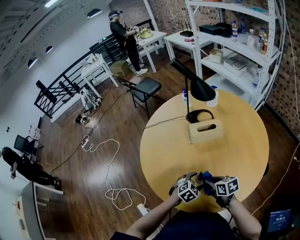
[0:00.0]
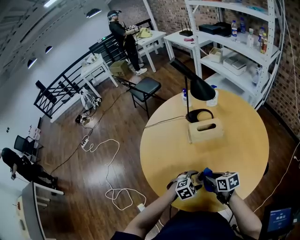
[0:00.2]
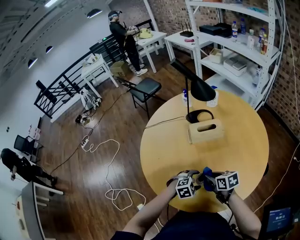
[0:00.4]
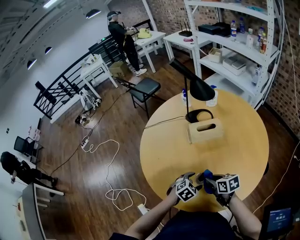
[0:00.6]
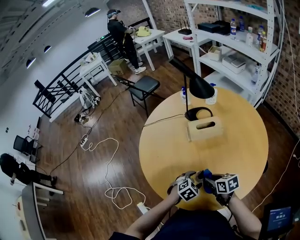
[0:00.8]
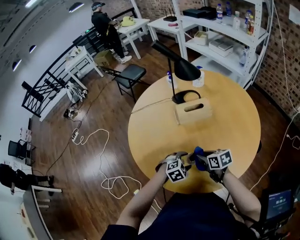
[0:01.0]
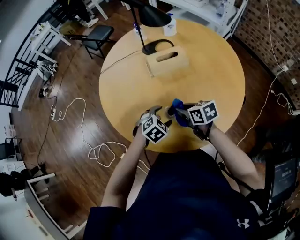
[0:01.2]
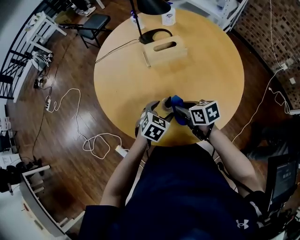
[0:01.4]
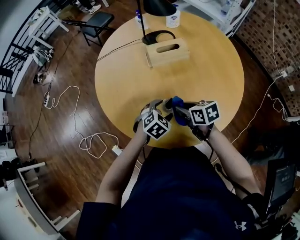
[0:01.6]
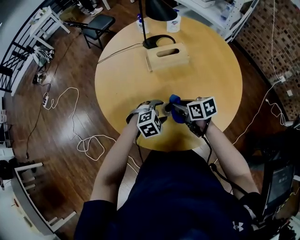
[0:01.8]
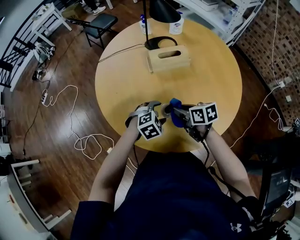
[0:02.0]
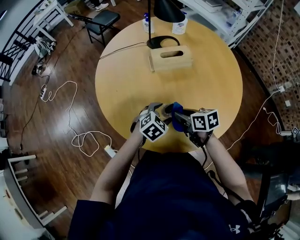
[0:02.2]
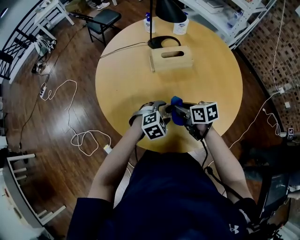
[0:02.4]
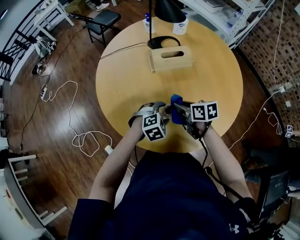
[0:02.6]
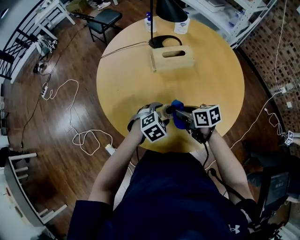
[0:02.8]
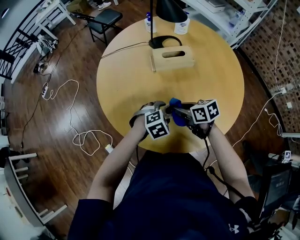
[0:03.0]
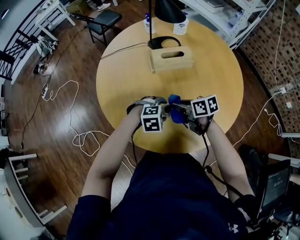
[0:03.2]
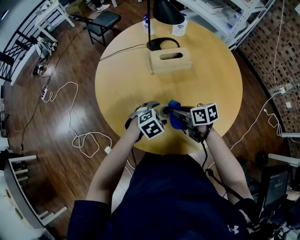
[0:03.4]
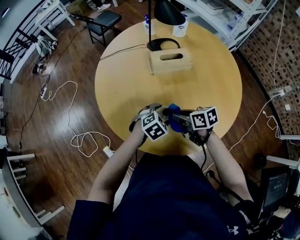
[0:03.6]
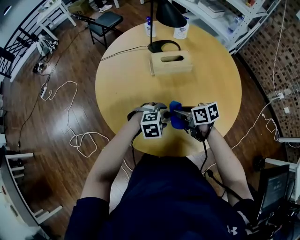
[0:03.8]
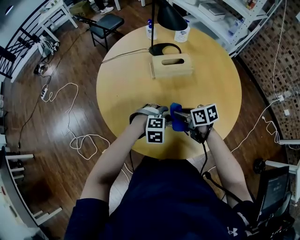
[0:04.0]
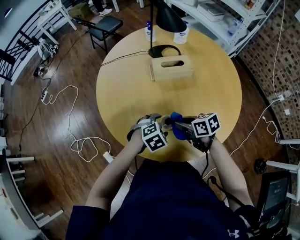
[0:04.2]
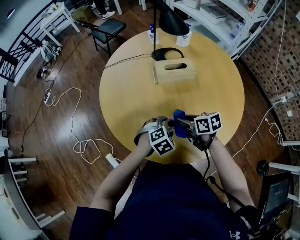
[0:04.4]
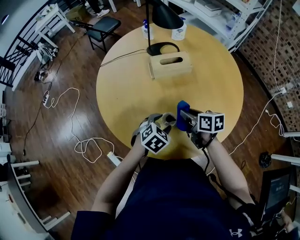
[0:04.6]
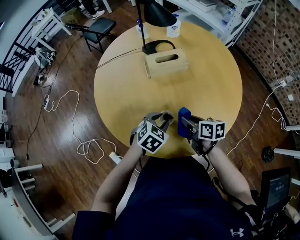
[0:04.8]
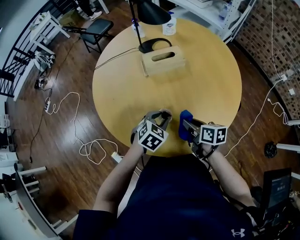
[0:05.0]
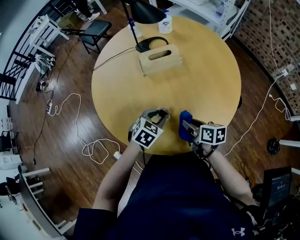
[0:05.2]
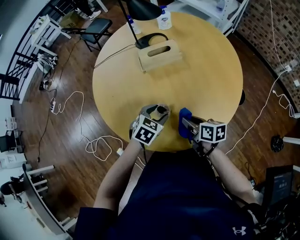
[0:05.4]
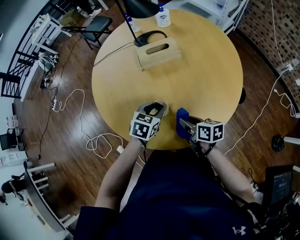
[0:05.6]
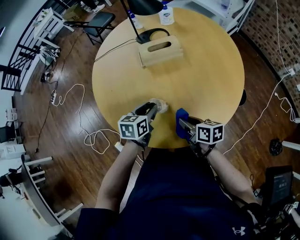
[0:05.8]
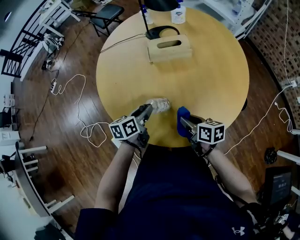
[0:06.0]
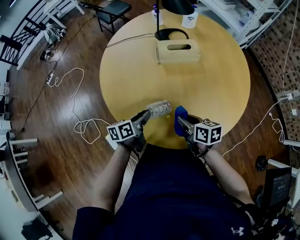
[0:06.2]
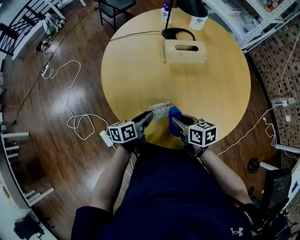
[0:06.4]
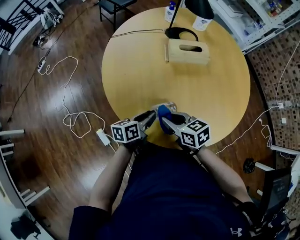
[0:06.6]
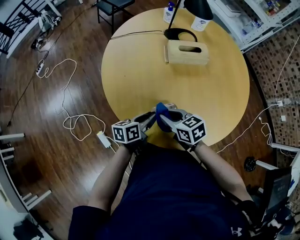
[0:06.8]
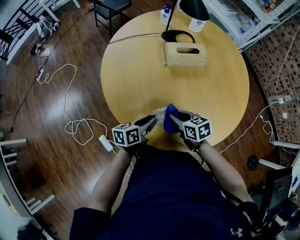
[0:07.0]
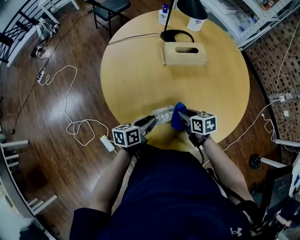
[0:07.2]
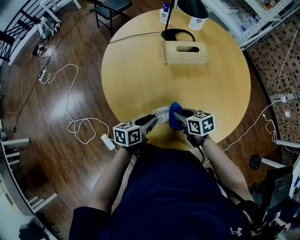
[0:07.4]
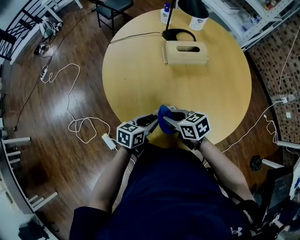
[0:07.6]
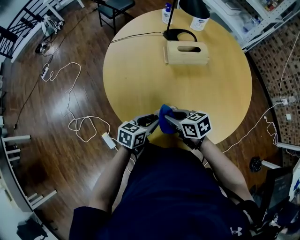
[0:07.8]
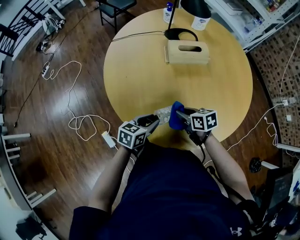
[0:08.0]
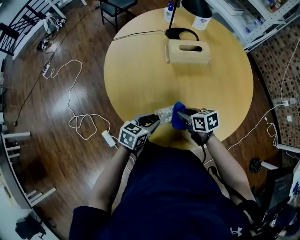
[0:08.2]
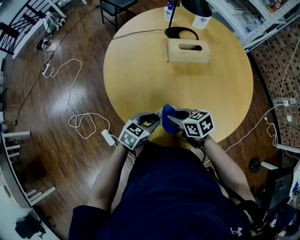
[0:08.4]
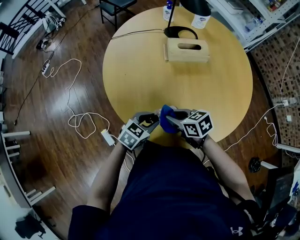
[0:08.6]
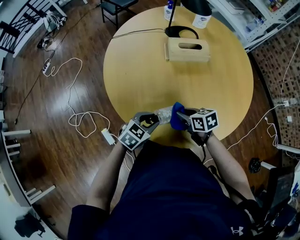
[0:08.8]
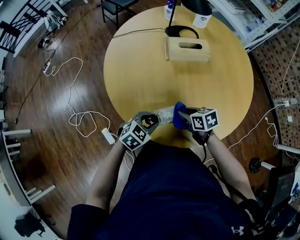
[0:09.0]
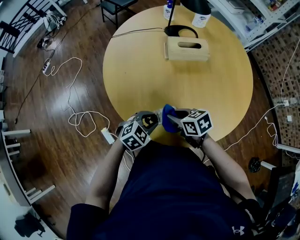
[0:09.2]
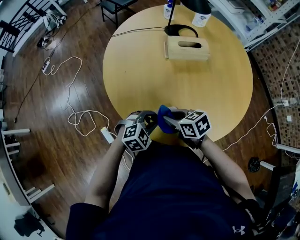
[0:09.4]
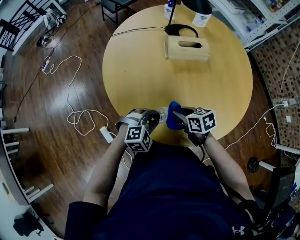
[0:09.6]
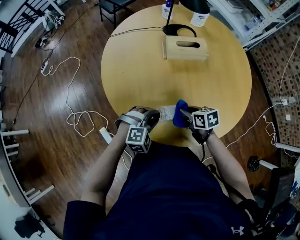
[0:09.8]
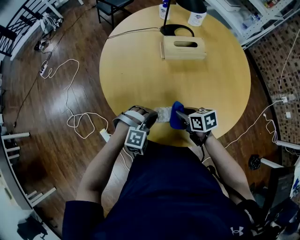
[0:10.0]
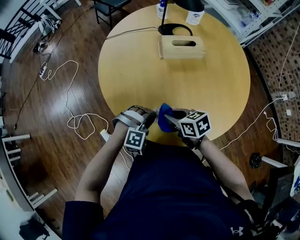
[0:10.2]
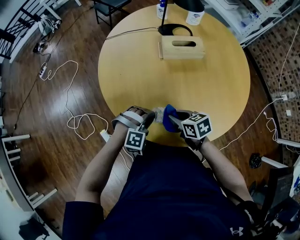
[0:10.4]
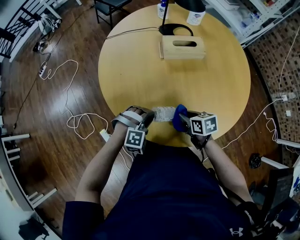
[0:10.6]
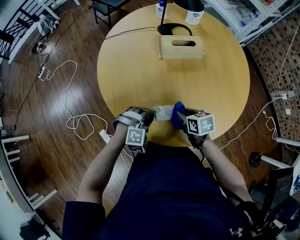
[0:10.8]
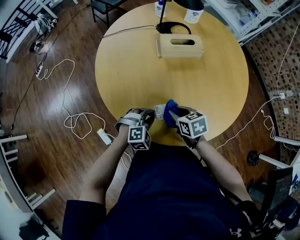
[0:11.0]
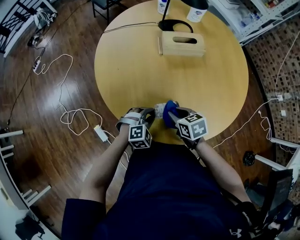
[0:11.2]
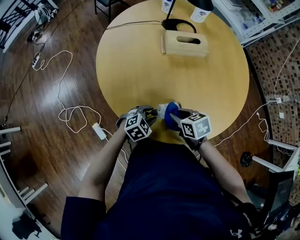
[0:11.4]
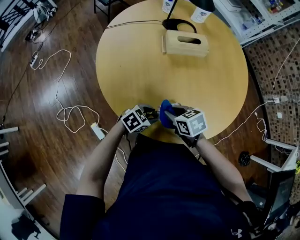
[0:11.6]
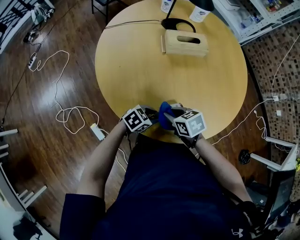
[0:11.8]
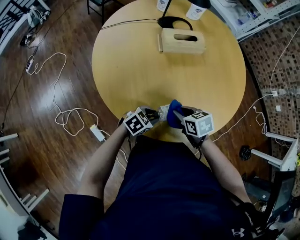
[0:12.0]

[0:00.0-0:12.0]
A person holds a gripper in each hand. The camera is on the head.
0:04.4 to 0:06.0: The right gripper is displaced backward by some 10 cm; the left gripper moves to the left, about 5 cm, rolls counterclockwise, seen from behind, by about 70 degrees, and closes.
0:06.0 to 0:07.6: The right gripper goes left and right, roughly 15 cm each way, reversing 2 times, and rotates some 30 degrees. The left gripper ends up approximately 5 cm from where it was.
0:07.6 to 0:09.0: The left gripper swivels about 40 degrees. Meanwhile the right gripper swings left and right, roughly 10 cm each way, with 2 reversals.
0:09.0 to 0:10.4: The left gripper twists some 60 degrees clockwise, seen from behind. Meanwhile the right gripper goes left and right, about 10 cm each way, reversing 2 times.
0:10.4 to 0:12.0: The left gripper is displaced downward by some 5 cm, and rotates around the line of its fingers by roughly 60 degrees, counterclockwise from behind.

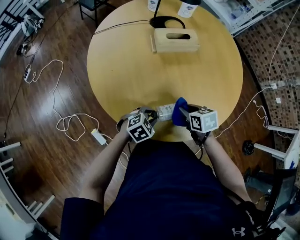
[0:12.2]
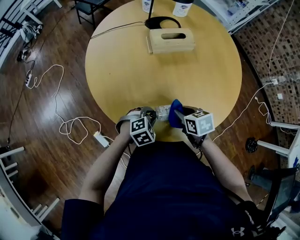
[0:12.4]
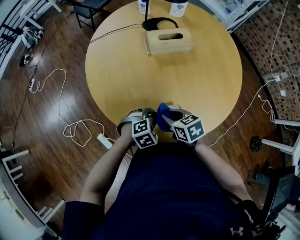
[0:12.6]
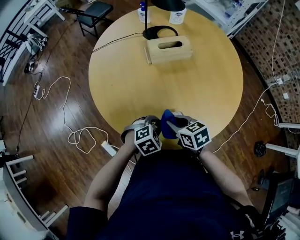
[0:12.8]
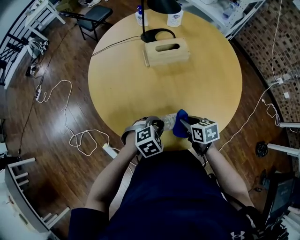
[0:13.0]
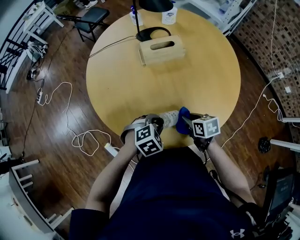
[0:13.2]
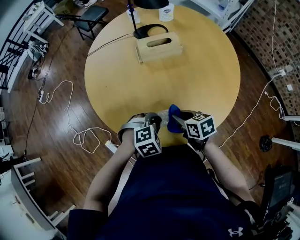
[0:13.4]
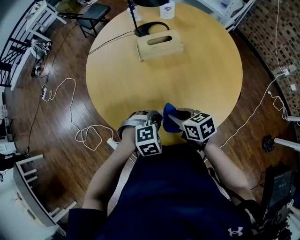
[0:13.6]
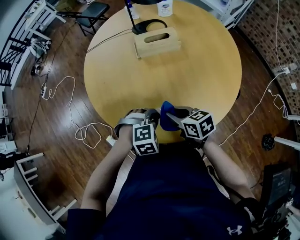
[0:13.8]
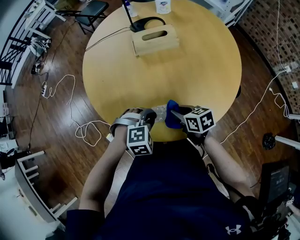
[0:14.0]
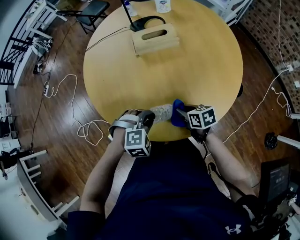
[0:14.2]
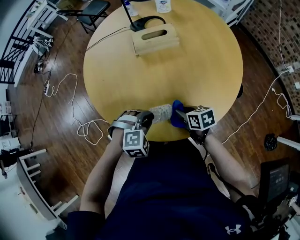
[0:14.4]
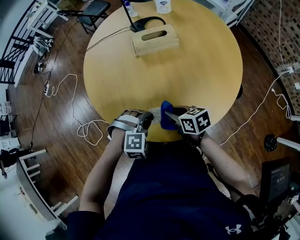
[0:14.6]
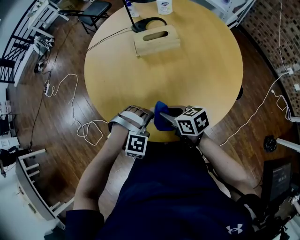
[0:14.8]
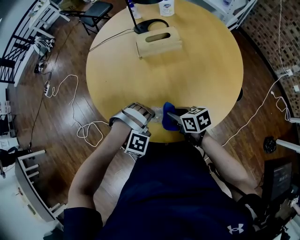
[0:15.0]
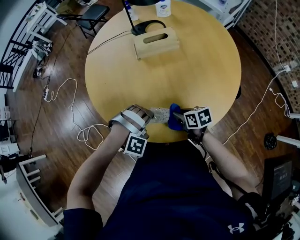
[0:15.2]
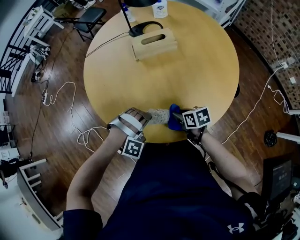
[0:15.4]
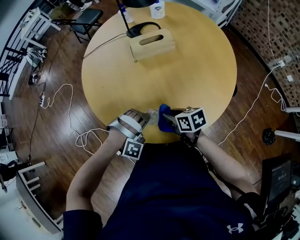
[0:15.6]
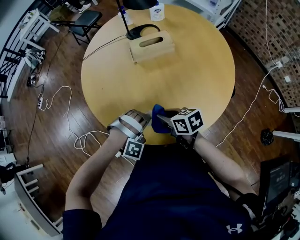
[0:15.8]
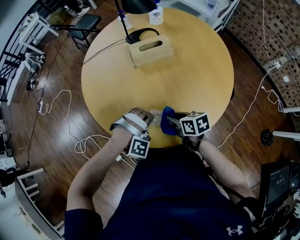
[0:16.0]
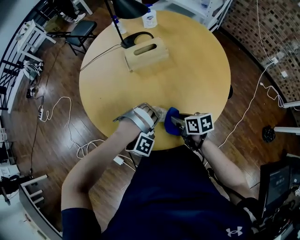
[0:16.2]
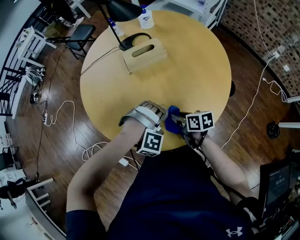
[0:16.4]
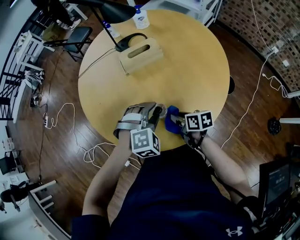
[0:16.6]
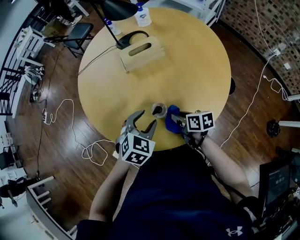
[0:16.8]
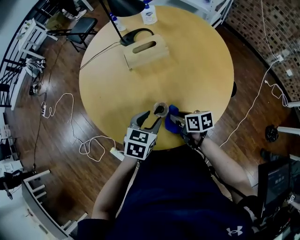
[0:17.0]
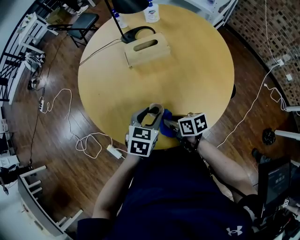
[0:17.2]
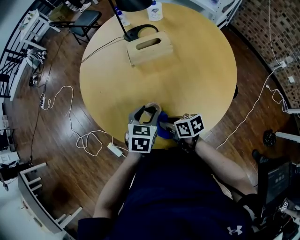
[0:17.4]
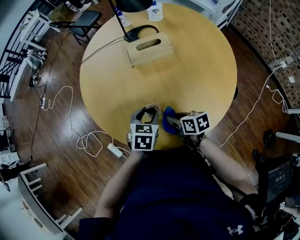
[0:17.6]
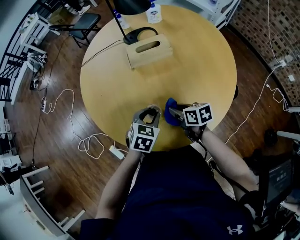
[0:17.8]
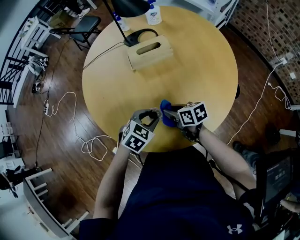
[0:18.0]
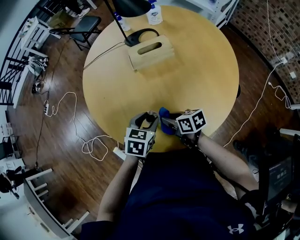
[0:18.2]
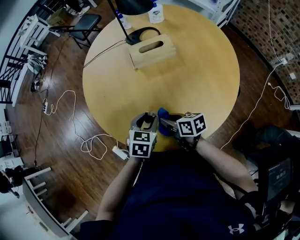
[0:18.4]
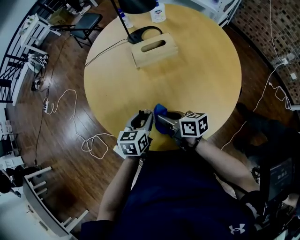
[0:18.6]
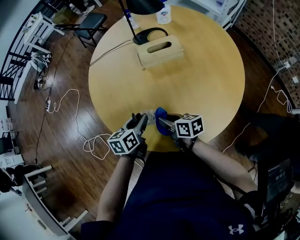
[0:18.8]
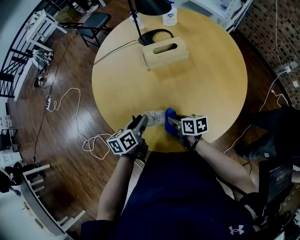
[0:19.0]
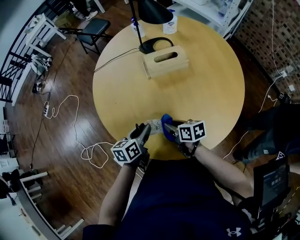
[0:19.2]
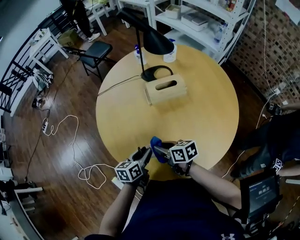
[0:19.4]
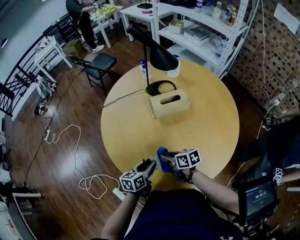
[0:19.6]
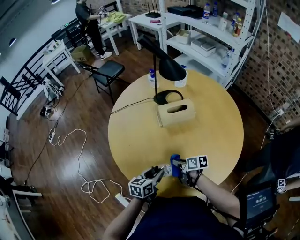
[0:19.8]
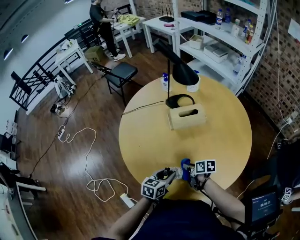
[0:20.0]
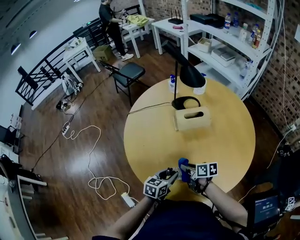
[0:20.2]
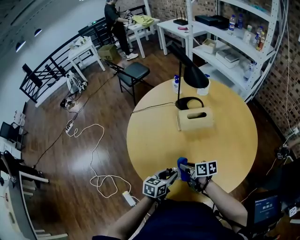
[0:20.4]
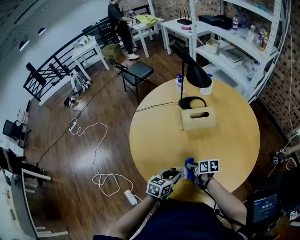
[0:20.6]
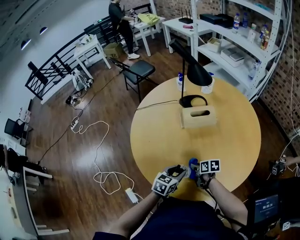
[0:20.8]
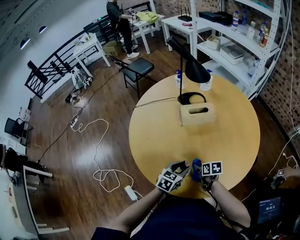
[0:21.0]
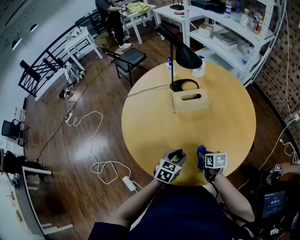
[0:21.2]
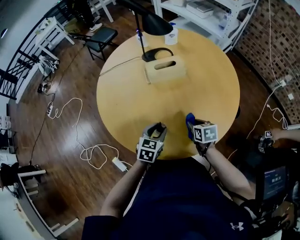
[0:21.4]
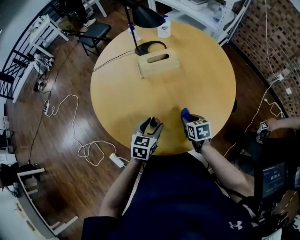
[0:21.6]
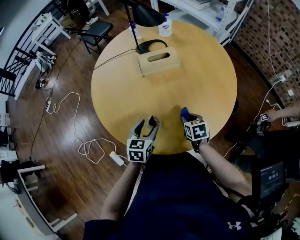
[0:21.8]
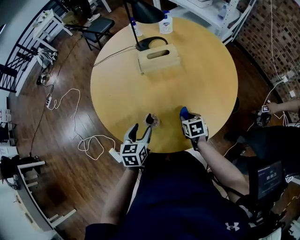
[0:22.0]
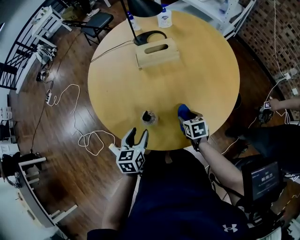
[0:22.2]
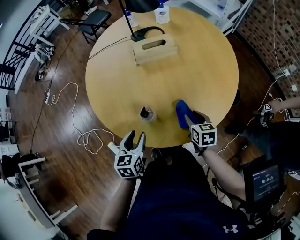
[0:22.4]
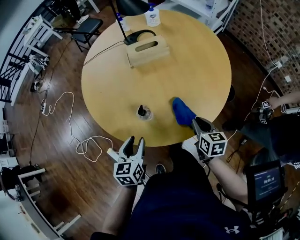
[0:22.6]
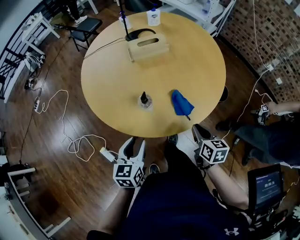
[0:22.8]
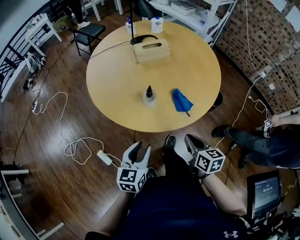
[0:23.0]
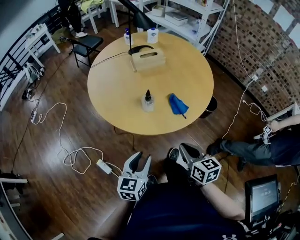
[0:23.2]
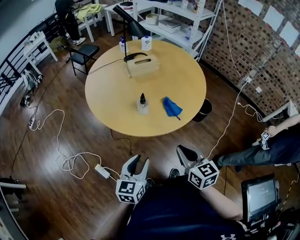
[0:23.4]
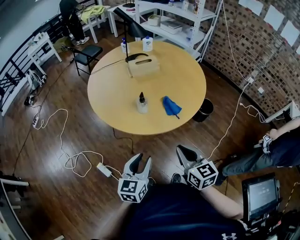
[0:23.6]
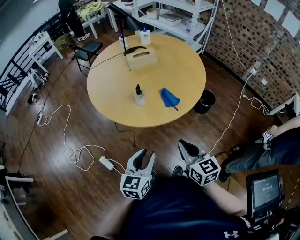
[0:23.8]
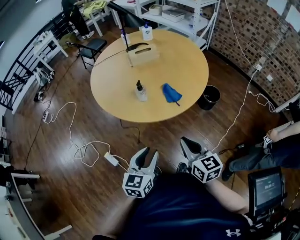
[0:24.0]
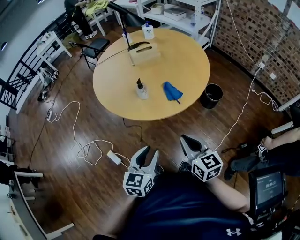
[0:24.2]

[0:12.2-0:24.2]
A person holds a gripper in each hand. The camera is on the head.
0:12.2 to 0:13.8: The left gripper shifts roughly 10 cm upward and to the right, and turns by some 30 degrees. Meanwhile the right gripper moves left and right over roughly 15 cm, changing direction 2 times, and swivels approximately 20 degrees.
0:13.8 to 0:15.2: The right gripper goes up and down, about 10 cm each way, reversing 2 times. The left gripper rolls clockwise, seen from behind, by some 40 degrees.
0:15.2 to 0:16.6: The left gripper moves to the right and upward, some 10 cm, and swivels about 30 degrees. The right gripper reaches roughly 5 cm to the left, then returns.
0:16.6 to 0:18.2: The left gripper goes roughly 5 cm to the left, and rotates around the line of its fingers by some 70 degrees, counterclockwise from behind. Meanwhile the right gripper goes left and right, roughly 5 cm each way, reversing 2 times.
0:18.2 to 0:19.8: The left gripper shifts about 10 cm to the left, and rotates some 30 degrees. Meanwhile the right gripper goes up and down, approximately 10 cm each way, reversing 3 times.
0:19.8 to 0:21.2: Both grippers move to the right, roughly 10 cm. The right gripper swivels about 20 degrees. Meanwhile the left gripper turns by roughly 30 degrees.
0:21.2 to 0:22.6: The left gripper heads backward, to the left and upward, covering roughly 15 cm, and turns by about 30 degrees, while the right gripper shifts approximately 15 cm backward, to the right and upward, changes its angle by about 20 degrees, and opens, then closes once more.
0:22.6 to 0:24.2: The right gripper heads backward and upward, covering approximately 30 cm, and changes its angle by about 20 degrees. Meanwhile the left gripper travels backward by approximately 25 cm, and turns by about 20 degrees.
